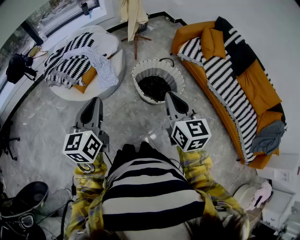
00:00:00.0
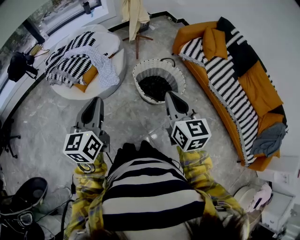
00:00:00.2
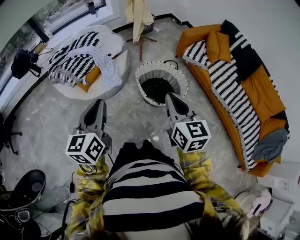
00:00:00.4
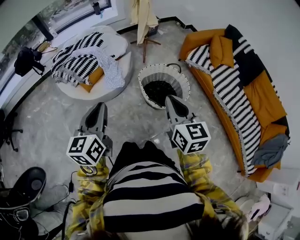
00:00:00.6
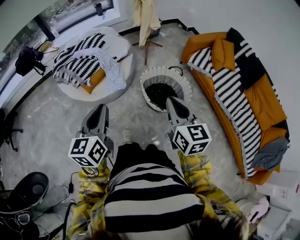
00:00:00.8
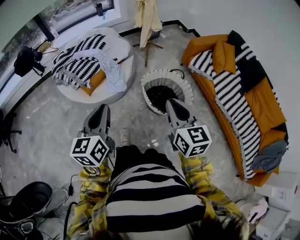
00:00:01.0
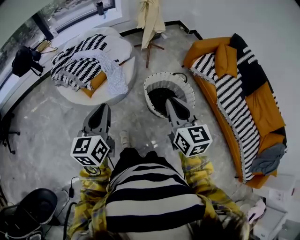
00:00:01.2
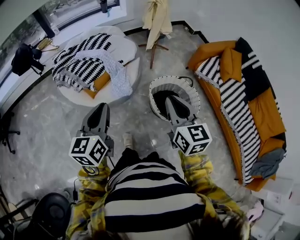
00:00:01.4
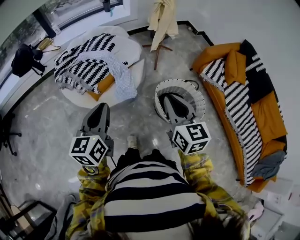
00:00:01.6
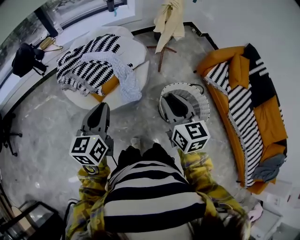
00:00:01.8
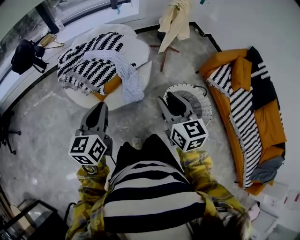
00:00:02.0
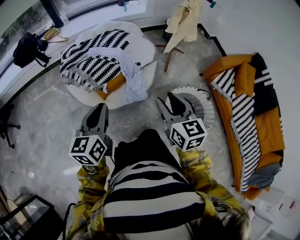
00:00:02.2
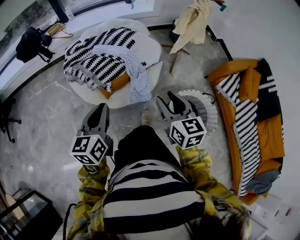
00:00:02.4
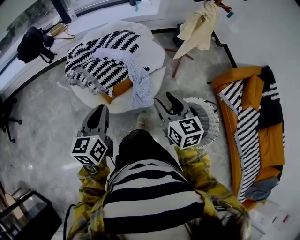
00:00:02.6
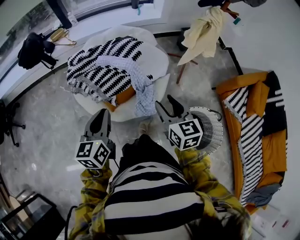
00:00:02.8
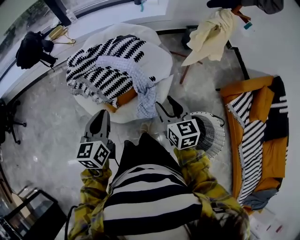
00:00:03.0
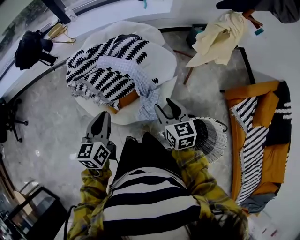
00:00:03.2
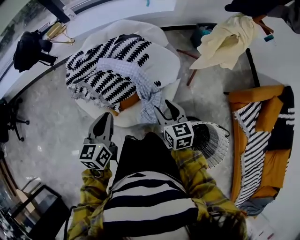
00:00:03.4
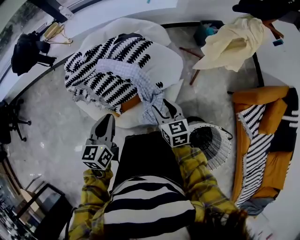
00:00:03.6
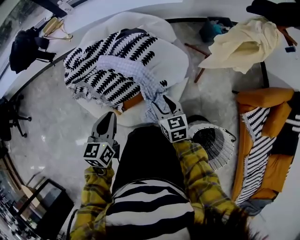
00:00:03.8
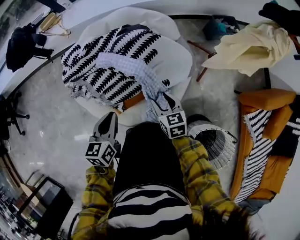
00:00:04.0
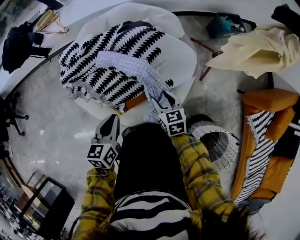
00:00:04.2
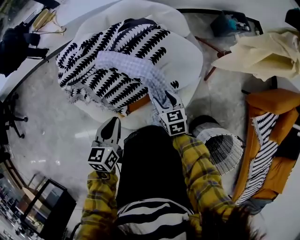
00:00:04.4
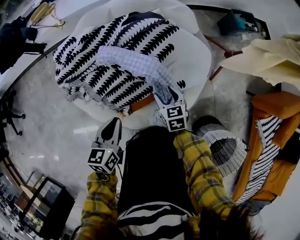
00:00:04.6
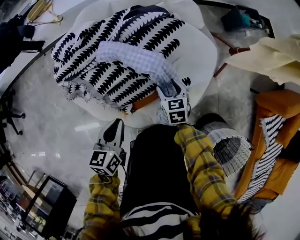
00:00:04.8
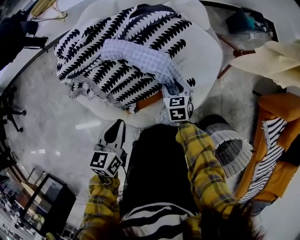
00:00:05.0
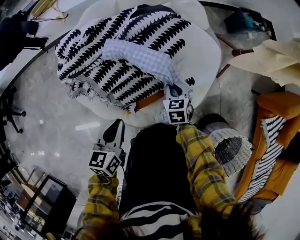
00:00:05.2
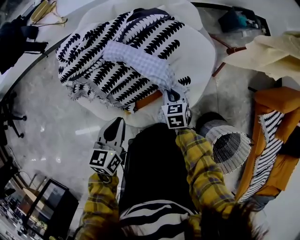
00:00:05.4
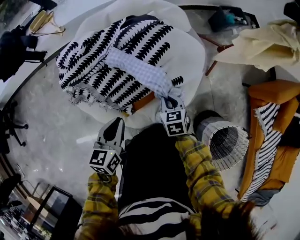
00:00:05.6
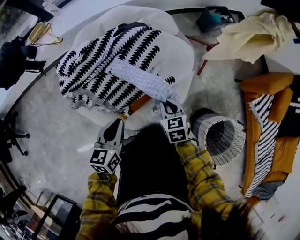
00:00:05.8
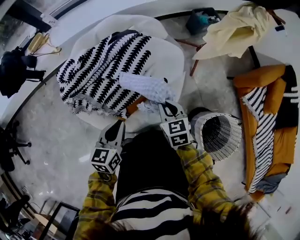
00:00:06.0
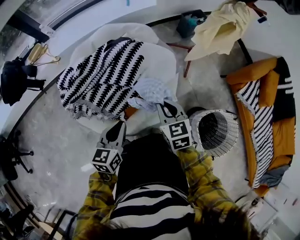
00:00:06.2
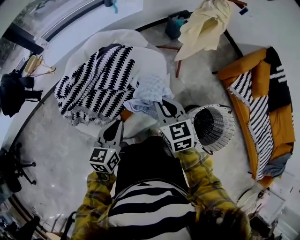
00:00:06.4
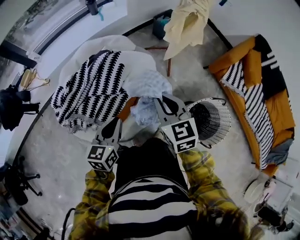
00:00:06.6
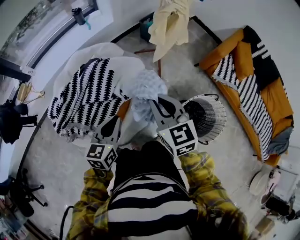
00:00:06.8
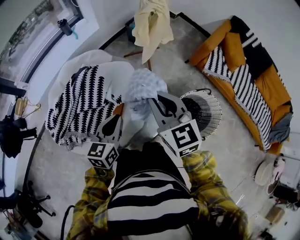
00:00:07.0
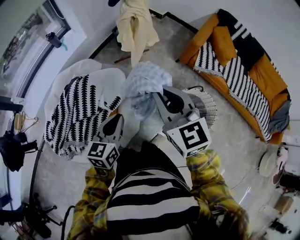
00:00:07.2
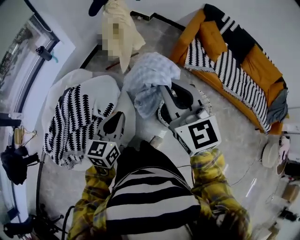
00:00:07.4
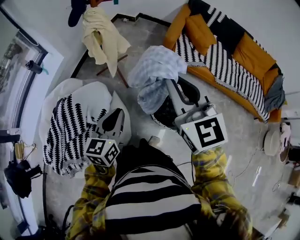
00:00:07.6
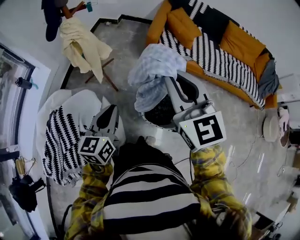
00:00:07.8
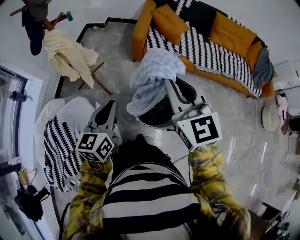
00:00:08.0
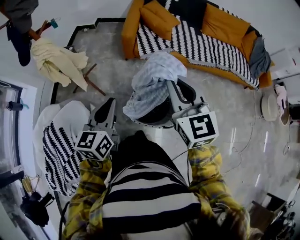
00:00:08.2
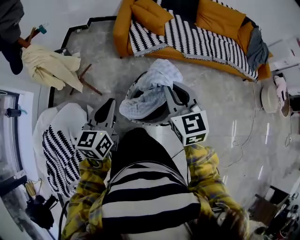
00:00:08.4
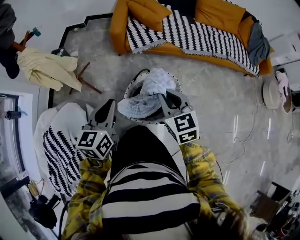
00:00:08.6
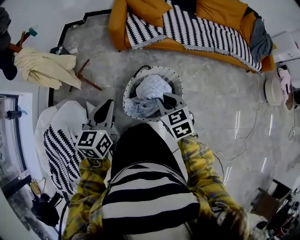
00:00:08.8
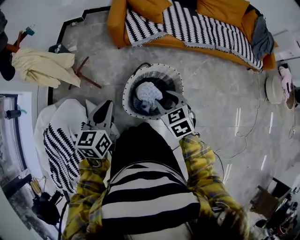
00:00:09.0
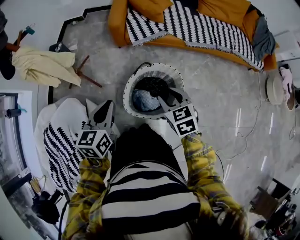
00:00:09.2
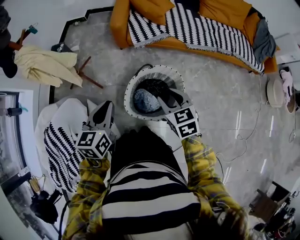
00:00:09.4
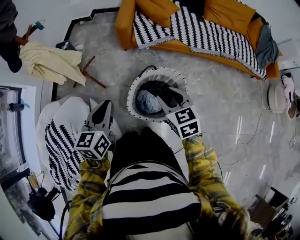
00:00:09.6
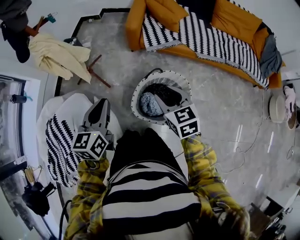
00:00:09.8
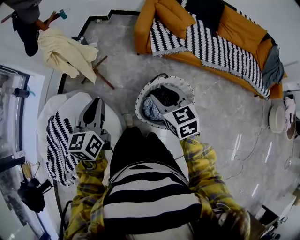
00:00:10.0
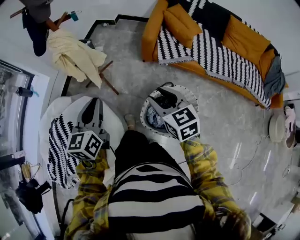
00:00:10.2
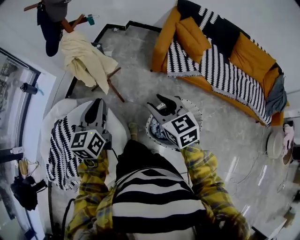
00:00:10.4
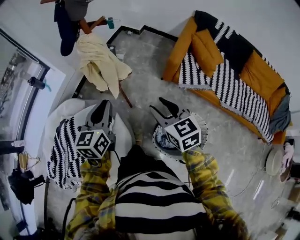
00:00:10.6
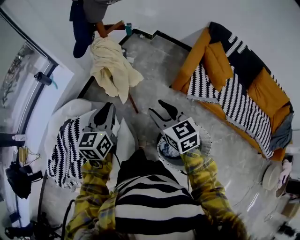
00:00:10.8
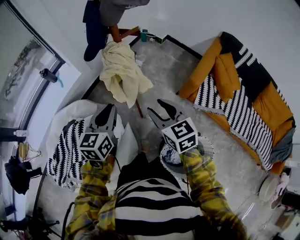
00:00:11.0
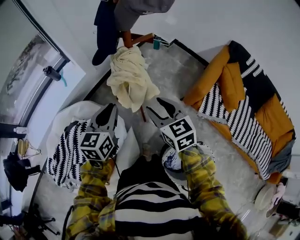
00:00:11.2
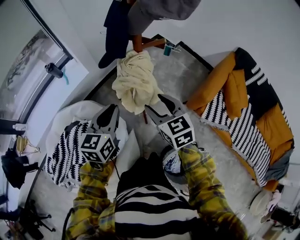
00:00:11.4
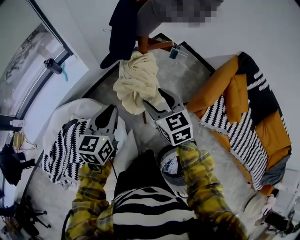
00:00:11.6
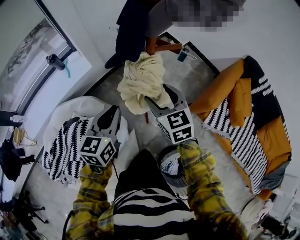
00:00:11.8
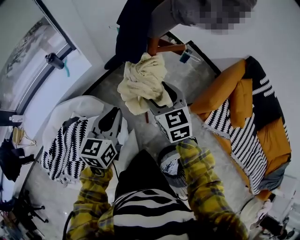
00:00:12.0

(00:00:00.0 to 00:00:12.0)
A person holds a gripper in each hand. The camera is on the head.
00:00:00.0 - 00:00:01.6: The two grippers go about 20 cm forward and to the left.
00:00:01.6 - 00:00:03.0: The left gripper shifts roughly 25 cm forward and to the left. Meanwhile the right gripper is displaced forward, downward and to the left by roughly 35 cm, and opens up.
00:00:03.0 - 00:00:04.4: The grippers both shift downward and forward by some 30 cm. The right gripper rotates about 20 degrees.
00:00:04.4 - 00:00:06.0: The left gripper is displaced upward by some 5 cm. The right gripper goes about 15 cm upward, and closes.
00:00:06.0 - 00:00:07.6: The left gripper ends up roughly 40 cm from where it was, and changes its angle by about 50 degrees, while the right gripper moves upward, approximately 40 cm, and points its fingers roughly 30 degrees further upward.
00:00:07.6 - 00:00:09.0: The right gripper moves downward and to the right, roughly 35 cm, tilts its fingers approximately 40 degrees downward, and opens up; the left gripper goes roughly 20 cm to the right and forward.
00:00:09.0 - 00:00:10.4: The left gripper ends up about 20 cm from where it was, and rotates approximately 30 degrees. The right gripper moves roughly 25 cm, and changes its angle by roughly 30 degrees.
00:00:10.4 - 00:00:12.0: The right gripper goes about 40 cm forward and to the left, turns by roughly 20 degrees, and opens up. The left gripper shifts about 25 cm forward and to the left.

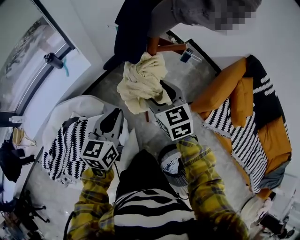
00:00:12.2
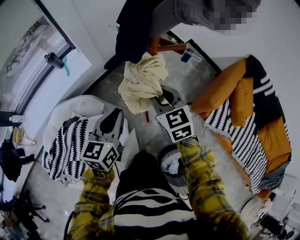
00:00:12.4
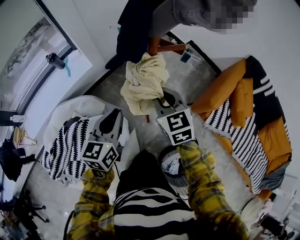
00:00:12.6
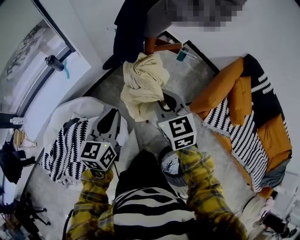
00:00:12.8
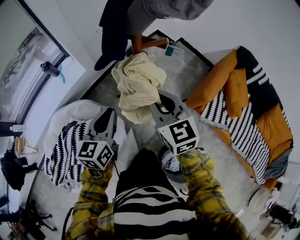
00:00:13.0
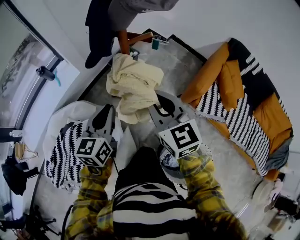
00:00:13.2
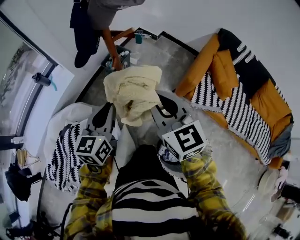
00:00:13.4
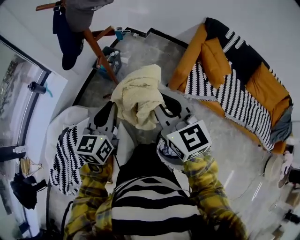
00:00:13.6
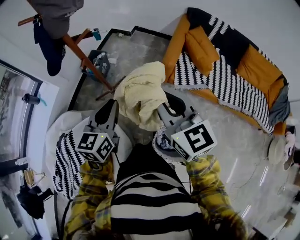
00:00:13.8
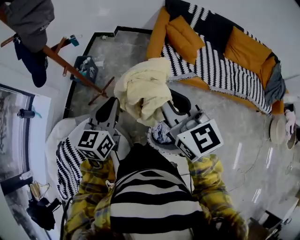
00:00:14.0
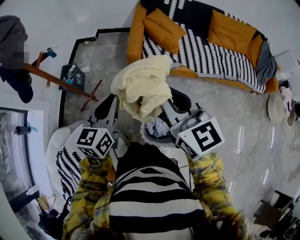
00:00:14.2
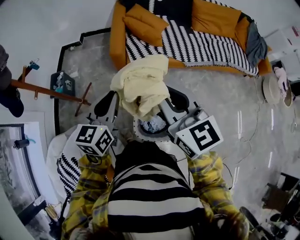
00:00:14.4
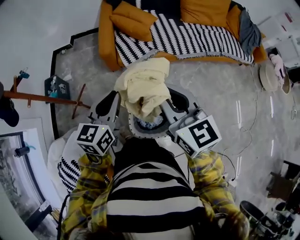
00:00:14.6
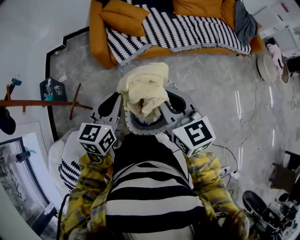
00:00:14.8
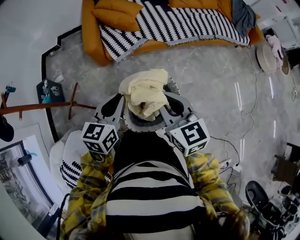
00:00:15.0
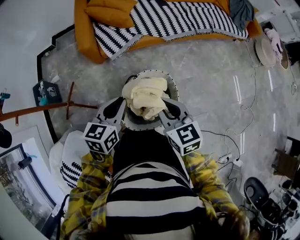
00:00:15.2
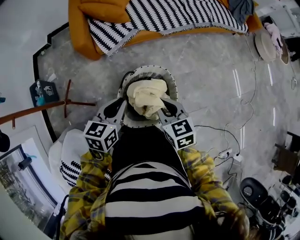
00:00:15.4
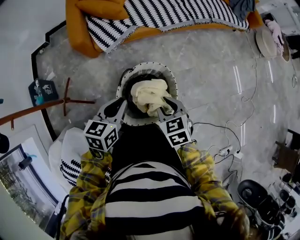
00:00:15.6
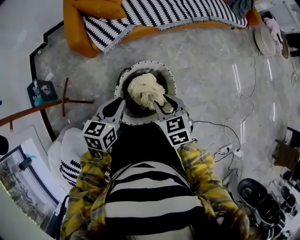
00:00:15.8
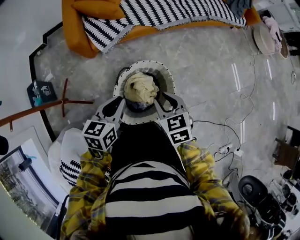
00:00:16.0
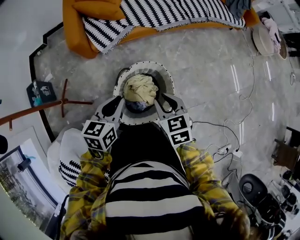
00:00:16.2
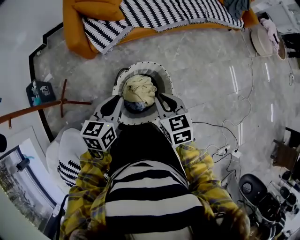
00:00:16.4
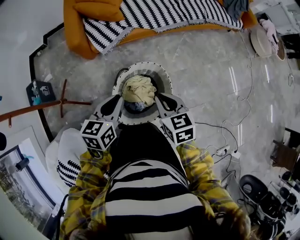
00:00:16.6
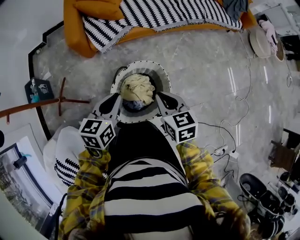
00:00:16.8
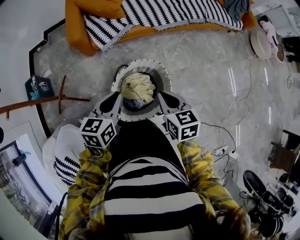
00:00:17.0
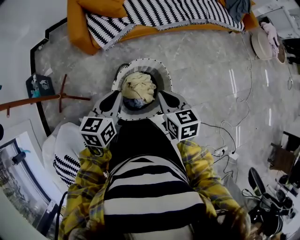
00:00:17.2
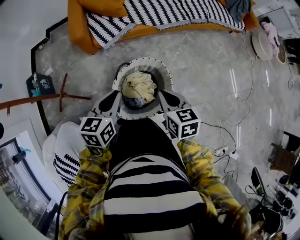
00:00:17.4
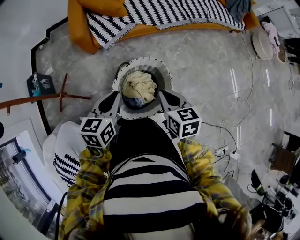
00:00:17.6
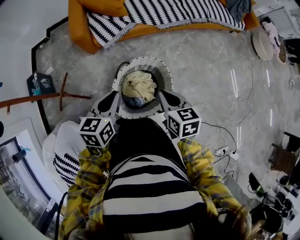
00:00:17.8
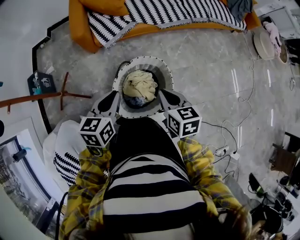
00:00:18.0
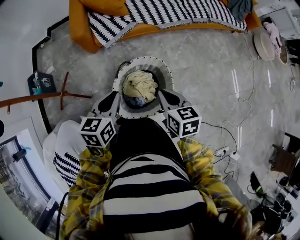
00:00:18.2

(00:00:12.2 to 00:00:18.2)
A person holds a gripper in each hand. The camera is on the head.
00:00:12.2 - 00:00:13.8: The right gripper shifts some 35 cm backward, to the right and upward, turns by approximately 30 degrees, and closes up; the left gripper goes about 20 cm to the right and backward, and turns by roughly 20 degrees.
00:00:13.8 - 00:00:15.2: The left gripper changes place by roughly 35 cm, and rotates some 50 degrees; the right gripper moves some 35 cm, and changes its angle by some 40 degrees.
00:00:15.2 - 00:00:16.6: The right gripper heads downward, covering some 5 cm, and opens and closes again.
00:00:16.6 - 00:00:18.2: There are only small adjustments of the grippers.

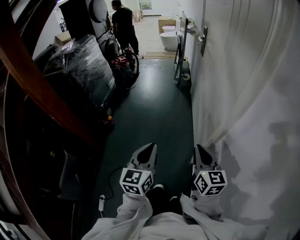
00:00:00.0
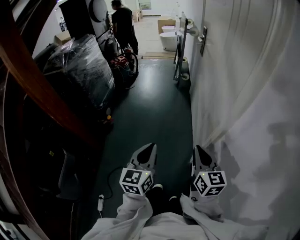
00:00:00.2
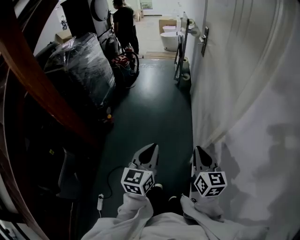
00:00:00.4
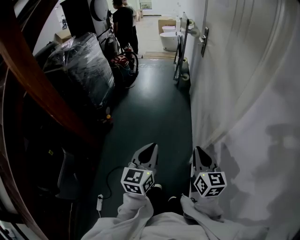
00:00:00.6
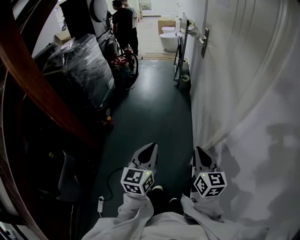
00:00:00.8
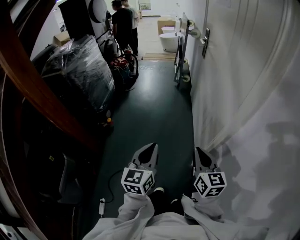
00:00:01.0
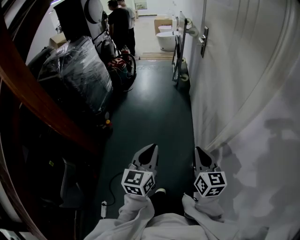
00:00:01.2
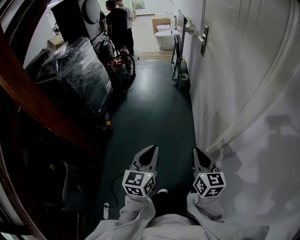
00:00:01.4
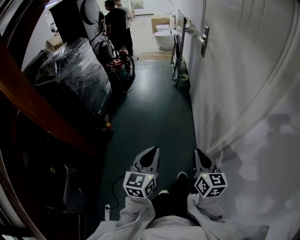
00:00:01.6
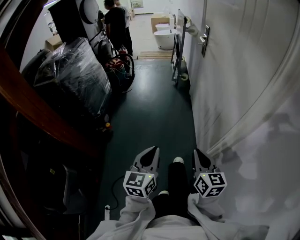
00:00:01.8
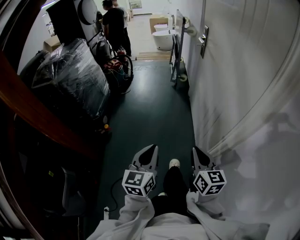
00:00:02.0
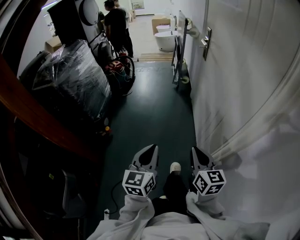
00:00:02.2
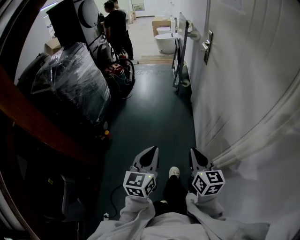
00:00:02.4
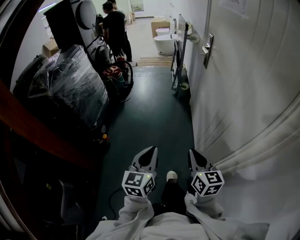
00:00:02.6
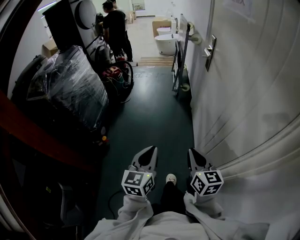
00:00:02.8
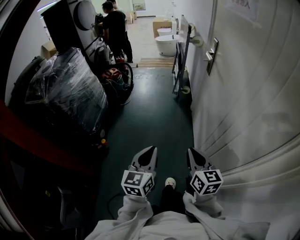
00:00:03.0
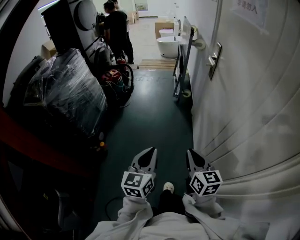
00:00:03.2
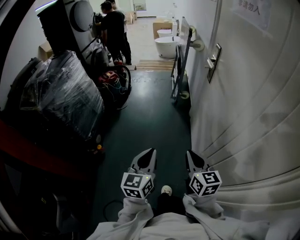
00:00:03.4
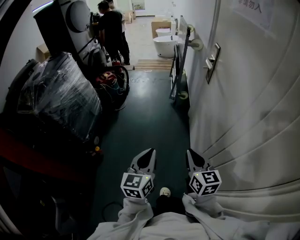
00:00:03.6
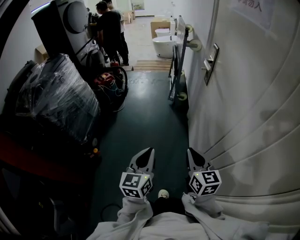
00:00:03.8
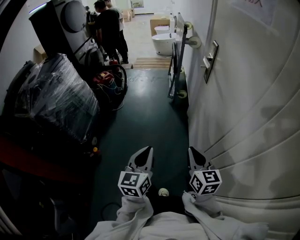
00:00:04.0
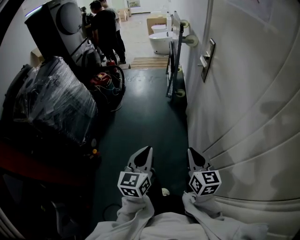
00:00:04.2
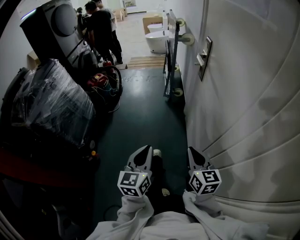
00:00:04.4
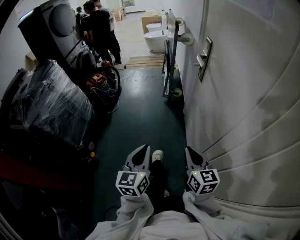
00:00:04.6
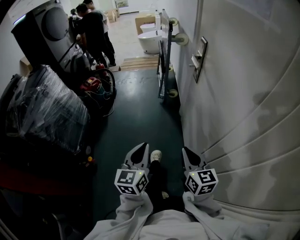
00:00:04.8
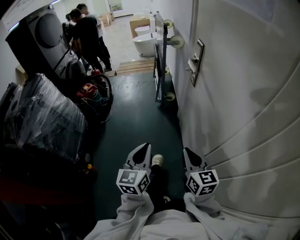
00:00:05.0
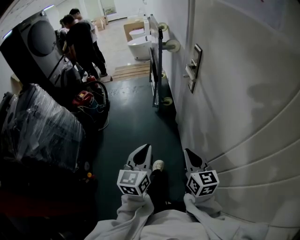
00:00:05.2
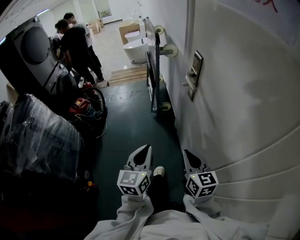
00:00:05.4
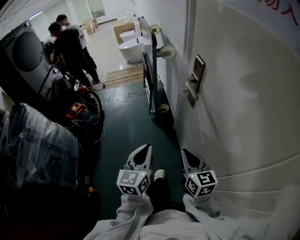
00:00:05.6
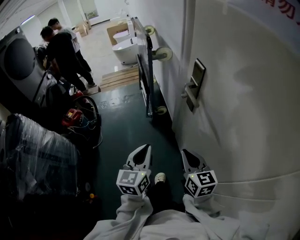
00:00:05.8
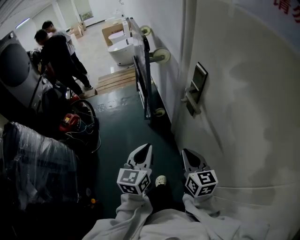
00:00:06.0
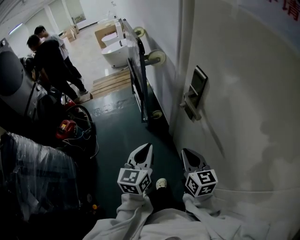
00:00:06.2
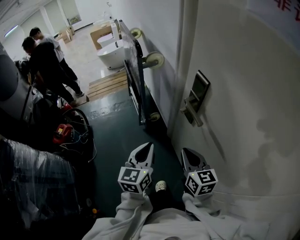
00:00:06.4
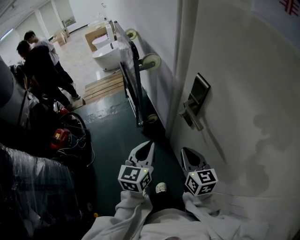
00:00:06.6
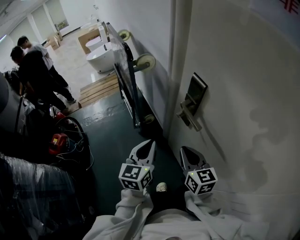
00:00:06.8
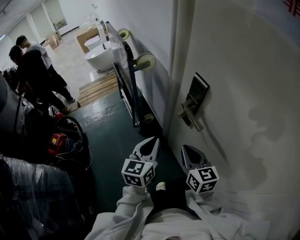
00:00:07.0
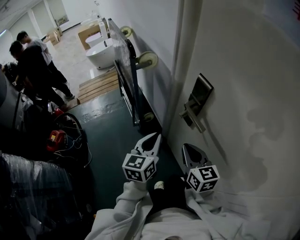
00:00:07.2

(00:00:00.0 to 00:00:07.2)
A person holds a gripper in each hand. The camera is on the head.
00:00:00.0 - 00:00:01.4: The right gripper travels to the left by about 5 cm. The left gripper heads forward, covering approximately 5 cm.
00:00:01.4 - 00:00:02.8: The two grippers go some 20 cm forward.
00:00:02.8 - 00:00:04.4: The grippers both shift forward by about 20 cm.
00:00:04.4 - 00:00:05.8: Both grippers travel together forward, about 30 cm.
00:00:05.8 - 00:00:07.2: Both grippers move forward, about 15 cm.
